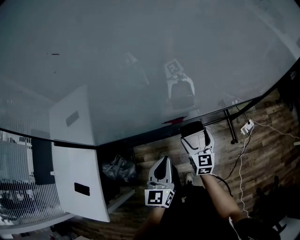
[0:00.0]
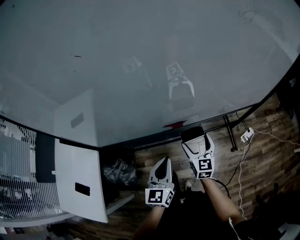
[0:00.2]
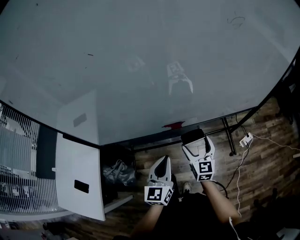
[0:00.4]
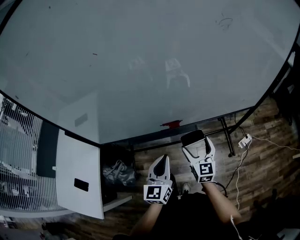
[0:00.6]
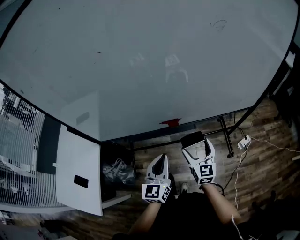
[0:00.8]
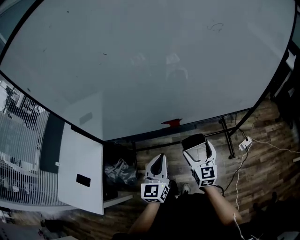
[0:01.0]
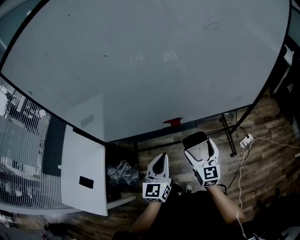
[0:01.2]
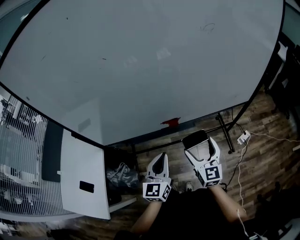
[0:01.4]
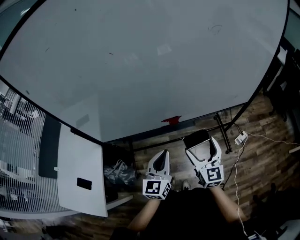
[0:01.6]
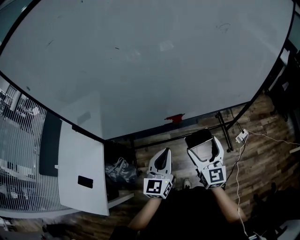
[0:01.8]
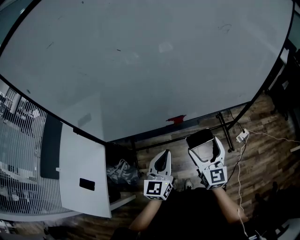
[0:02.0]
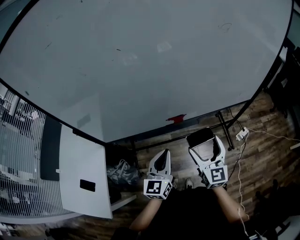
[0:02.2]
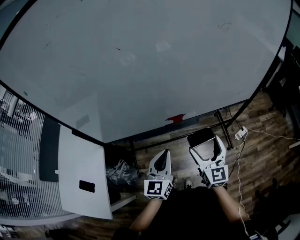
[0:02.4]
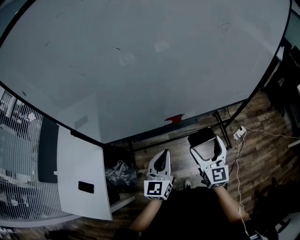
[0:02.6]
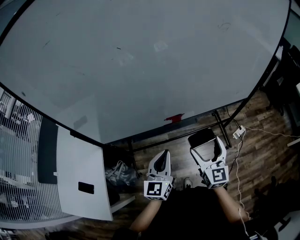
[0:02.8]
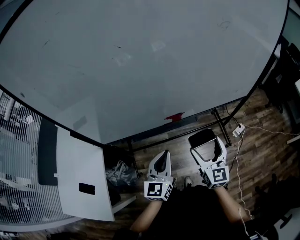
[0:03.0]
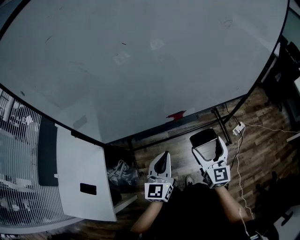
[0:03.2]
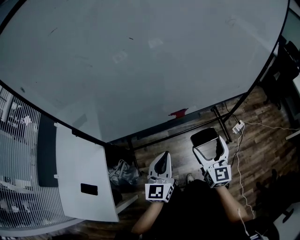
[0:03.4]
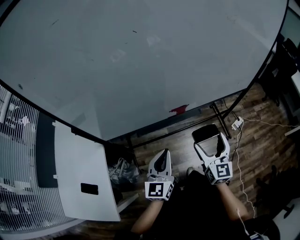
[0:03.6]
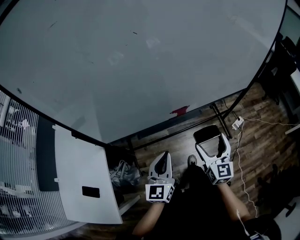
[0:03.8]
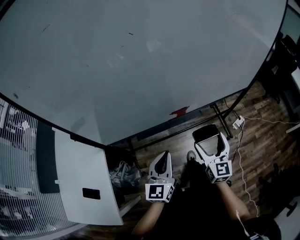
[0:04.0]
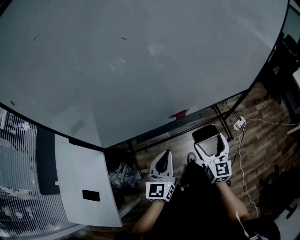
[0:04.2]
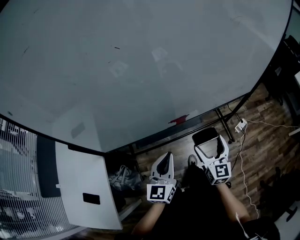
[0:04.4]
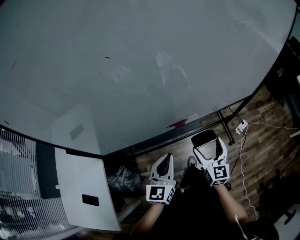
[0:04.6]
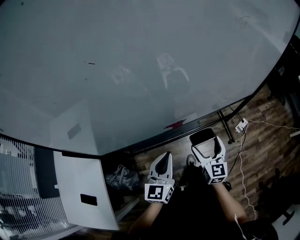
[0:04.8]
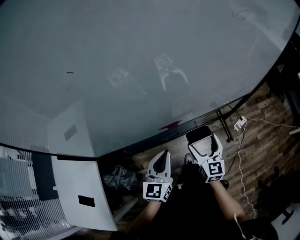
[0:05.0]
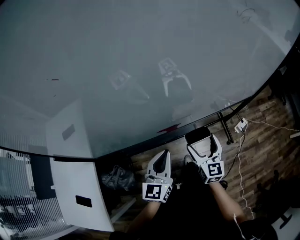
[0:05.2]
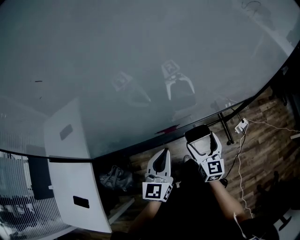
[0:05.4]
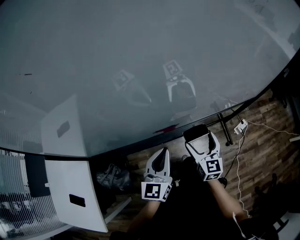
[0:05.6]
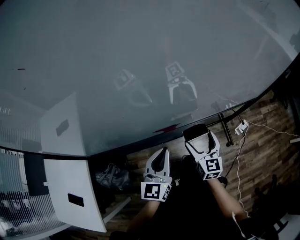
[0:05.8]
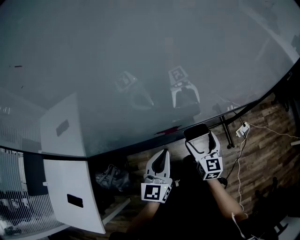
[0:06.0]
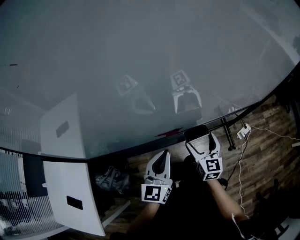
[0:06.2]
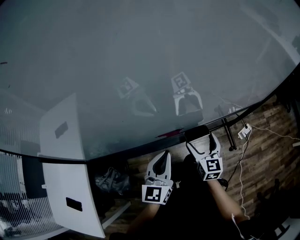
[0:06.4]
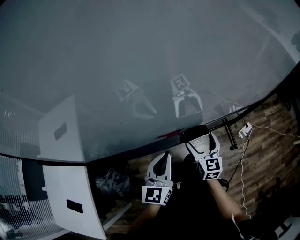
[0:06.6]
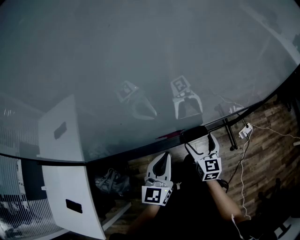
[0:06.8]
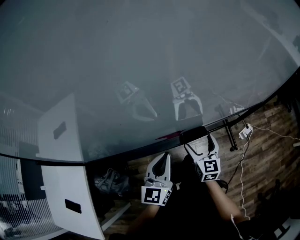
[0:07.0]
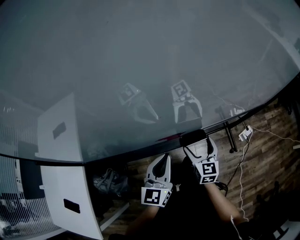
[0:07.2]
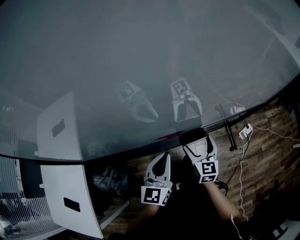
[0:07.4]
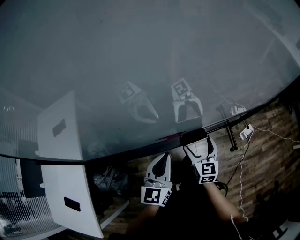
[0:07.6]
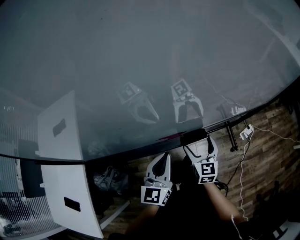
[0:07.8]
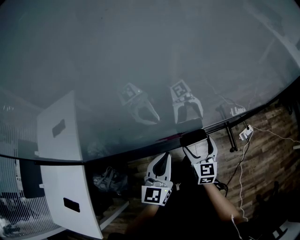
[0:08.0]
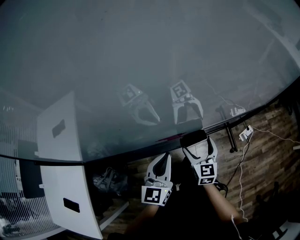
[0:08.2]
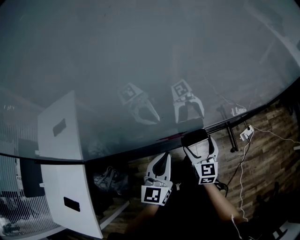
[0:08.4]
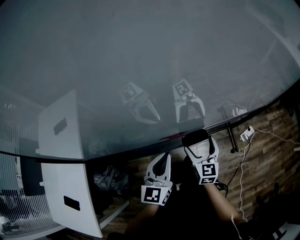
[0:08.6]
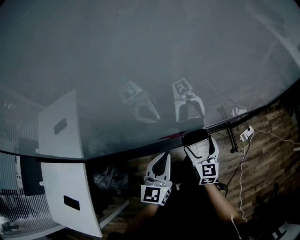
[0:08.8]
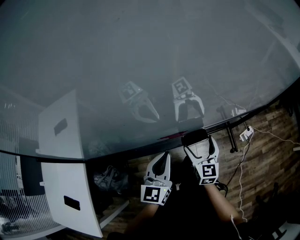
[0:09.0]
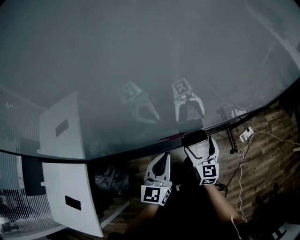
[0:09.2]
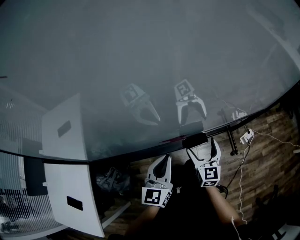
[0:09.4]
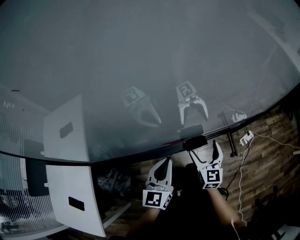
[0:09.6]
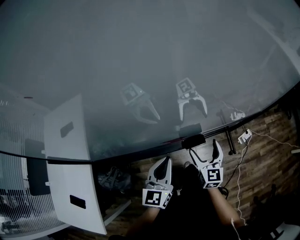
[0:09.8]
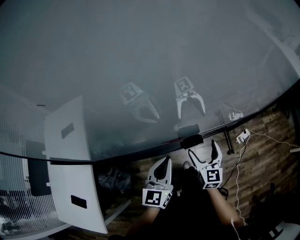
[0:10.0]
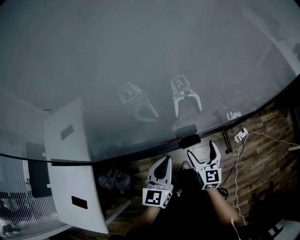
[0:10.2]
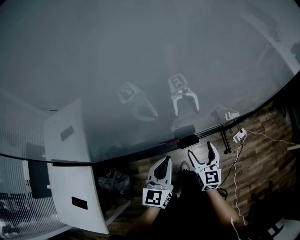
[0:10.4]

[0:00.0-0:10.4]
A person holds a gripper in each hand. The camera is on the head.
0.0 to 1.4 s: The right gripper heads upward and backward, covering about 20 cm, while the left gripper shifts roughly 10 cm upward and backward.
1.4 to 3.0 s: The grippers make only small movements.
3.0 to 4.4 s: The right gripper heads downward, covering about 5 cm.
4.4 to 6.0 s: The left gripper goes some 15 cm forward and downward. Meanwhile the right gripper shifts approximately 15 cm downward and forward.
6.0 to 7.4 s: The right gripper heads downward, covering about 5 cm.
7.4 to 9.0 s: Both grippers stay about where they are.
9.0 to 10.4 s: Both grippers move upward, approximately 10 cm.

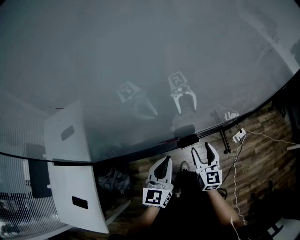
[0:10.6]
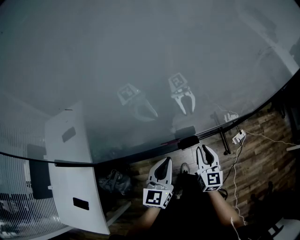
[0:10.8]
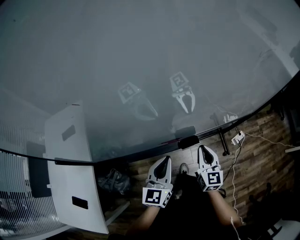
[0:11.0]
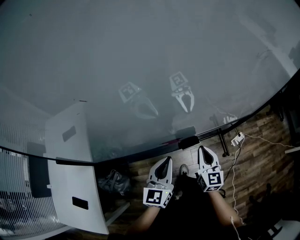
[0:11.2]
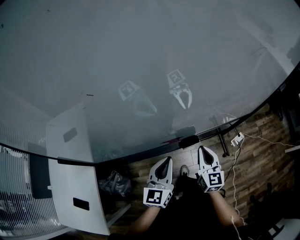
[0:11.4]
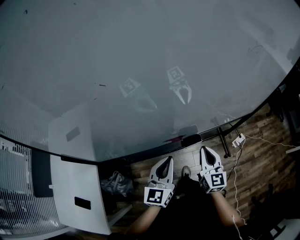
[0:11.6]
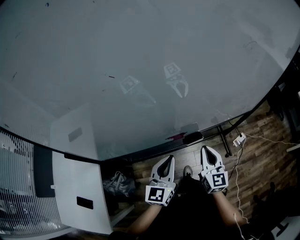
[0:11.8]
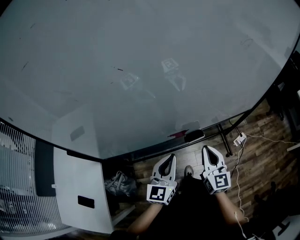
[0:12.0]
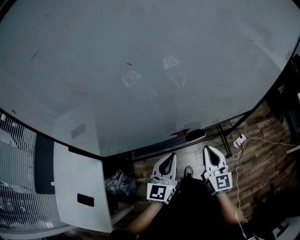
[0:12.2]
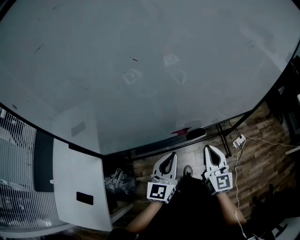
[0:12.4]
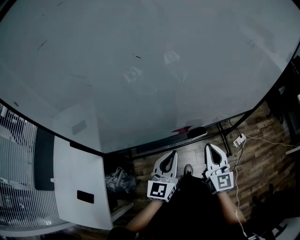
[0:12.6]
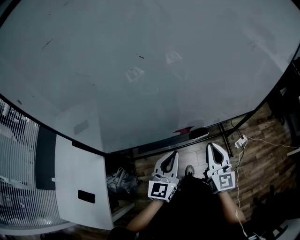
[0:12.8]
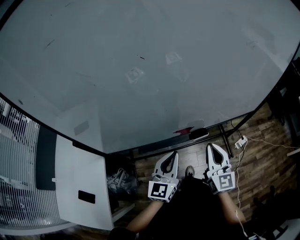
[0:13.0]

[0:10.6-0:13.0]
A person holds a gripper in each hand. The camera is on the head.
10.6 to 11.8 s: The right gripper travels upward by roughly 10 cm, and closes up, while the left gripper changes place by some 5 cm.
11.8 to 13.0 s: The right gripper moves upward, about 5 cm.

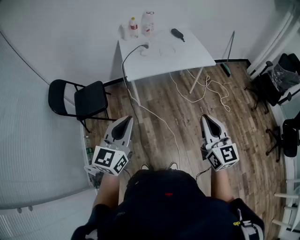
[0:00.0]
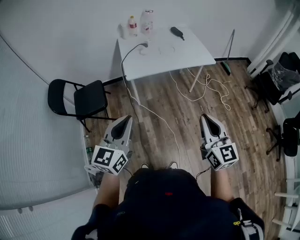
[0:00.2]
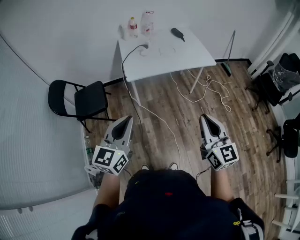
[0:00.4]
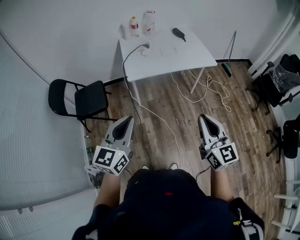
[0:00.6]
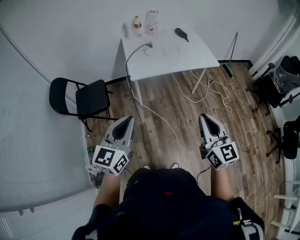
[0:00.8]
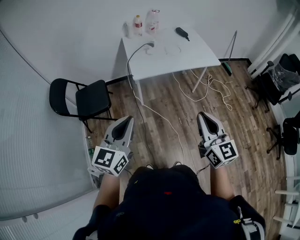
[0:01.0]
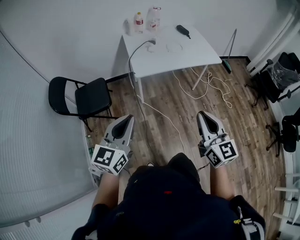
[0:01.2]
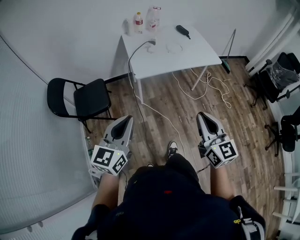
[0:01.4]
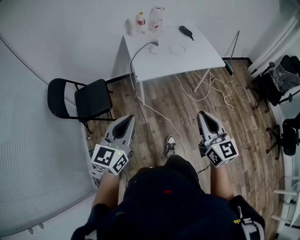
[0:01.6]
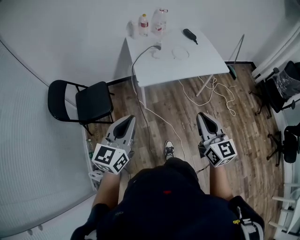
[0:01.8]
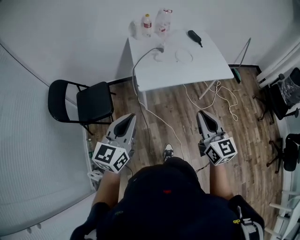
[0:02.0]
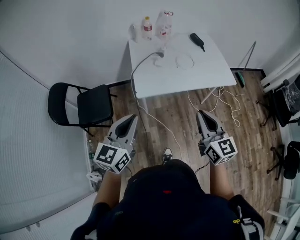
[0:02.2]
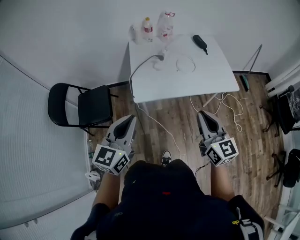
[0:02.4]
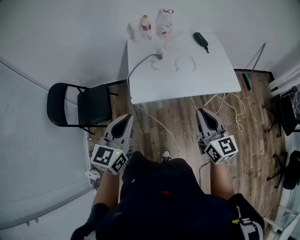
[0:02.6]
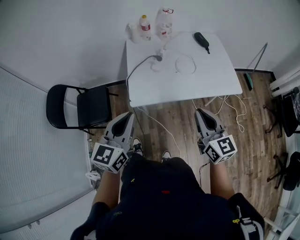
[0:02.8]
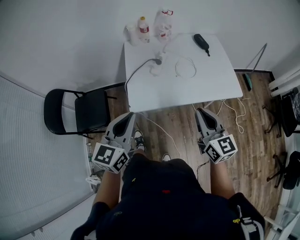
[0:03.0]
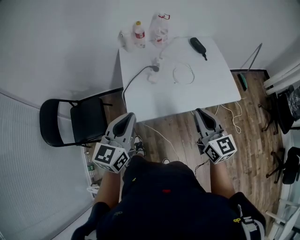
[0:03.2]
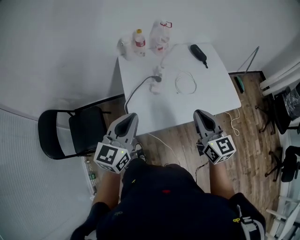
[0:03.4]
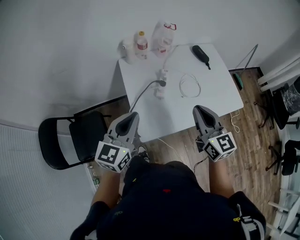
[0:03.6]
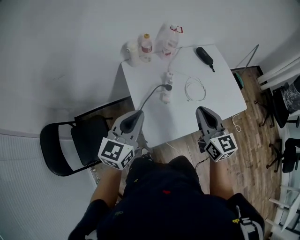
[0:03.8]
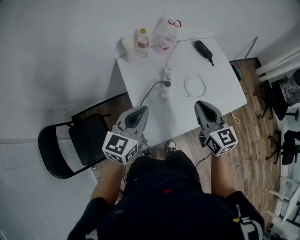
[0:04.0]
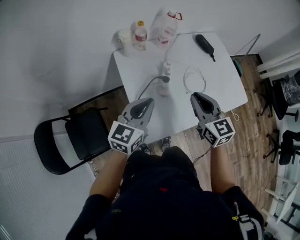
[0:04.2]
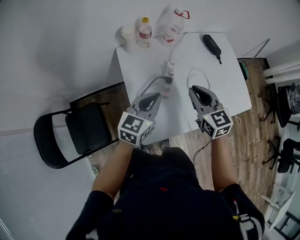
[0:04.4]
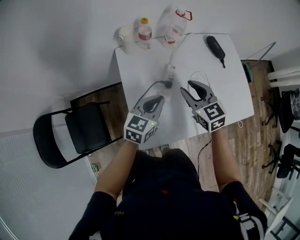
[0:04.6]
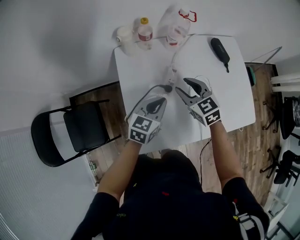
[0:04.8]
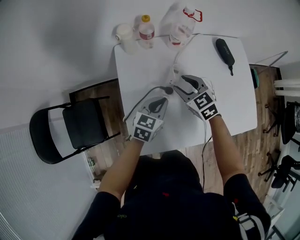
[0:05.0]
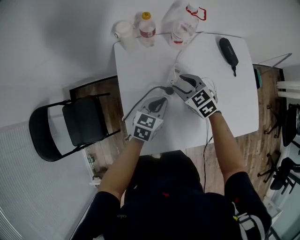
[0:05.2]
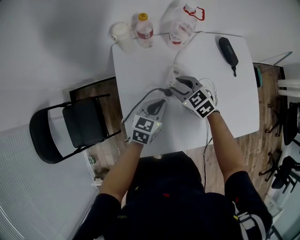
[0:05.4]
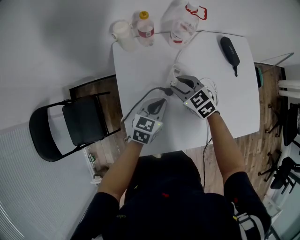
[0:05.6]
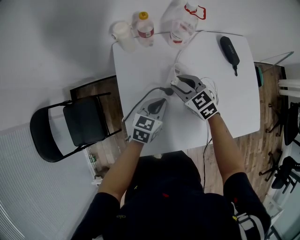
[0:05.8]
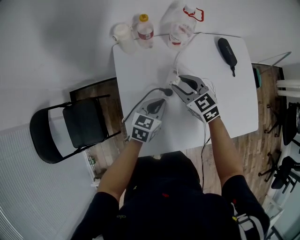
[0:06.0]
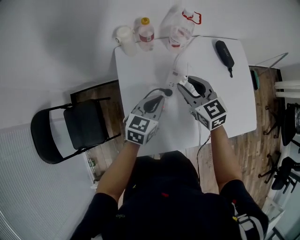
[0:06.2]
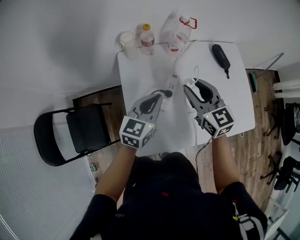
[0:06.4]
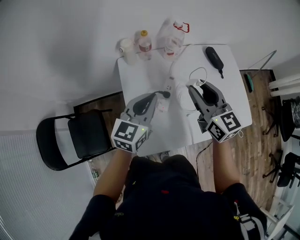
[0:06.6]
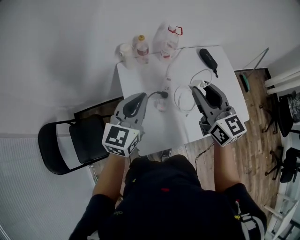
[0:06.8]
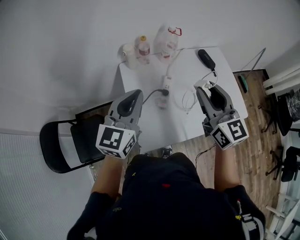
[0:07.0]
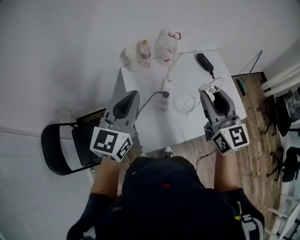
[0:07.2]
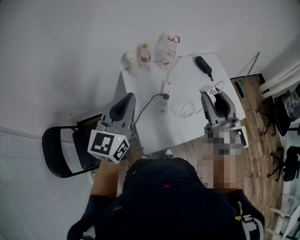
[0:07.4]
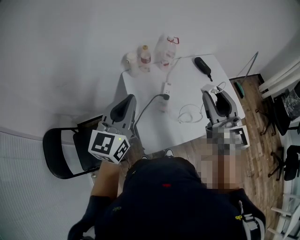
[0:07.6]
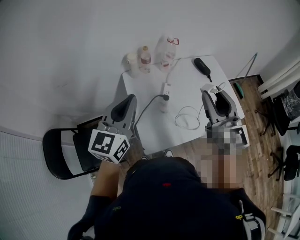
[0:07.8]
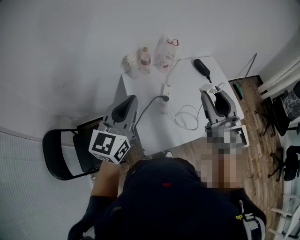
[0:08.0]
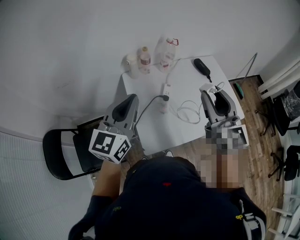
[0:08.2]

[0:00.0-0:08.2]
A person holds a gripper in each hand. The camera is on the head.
0.0 to 1.6 s: The grippers both shift to the left and forward by about 15 cm.
1.6 to 3.2 s: The grippers both shift forward by about 40 cm.
3.2 to 5.0 s: The left gripper goes about 40 cm forward and downward, and rotates approximately 30 degrees. Meanwhile the right gripper goes approximately 50 cm forward, downward and to the left, tips its fingers downward by approximately 30 degrees, and opens its fingers.
5.0 to 6.6 s: The two grippers go some 20 cm upward. The right gripper rotates approximately 40 degrees.
6.6 to 8.2 s: The right gripper shifts some 20 cm upward and backward, and swivels approximately 20 degrees, while the left gripper goes approximately 20 cm upward, backward and to the left.

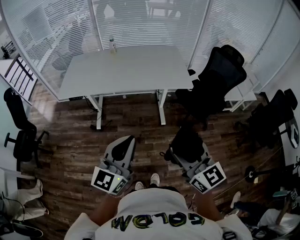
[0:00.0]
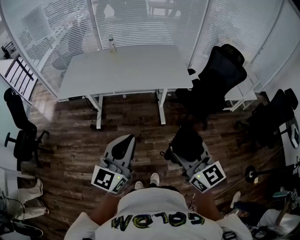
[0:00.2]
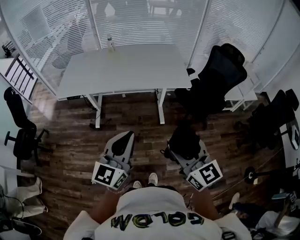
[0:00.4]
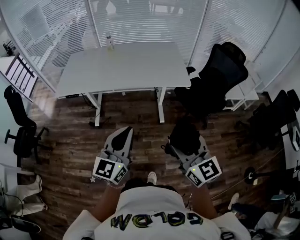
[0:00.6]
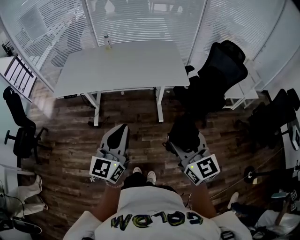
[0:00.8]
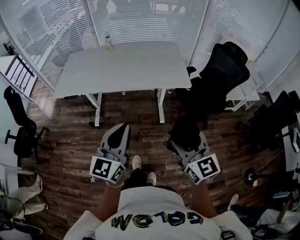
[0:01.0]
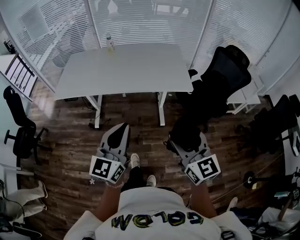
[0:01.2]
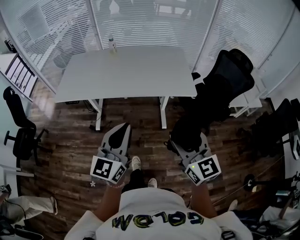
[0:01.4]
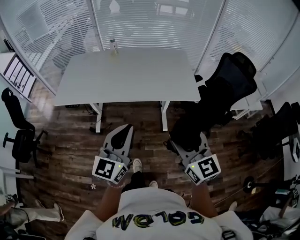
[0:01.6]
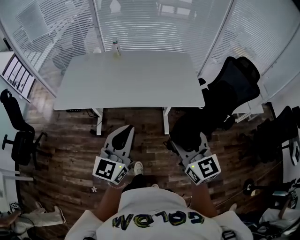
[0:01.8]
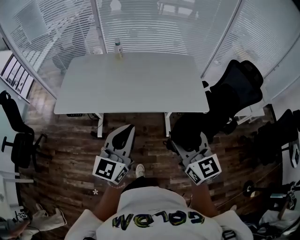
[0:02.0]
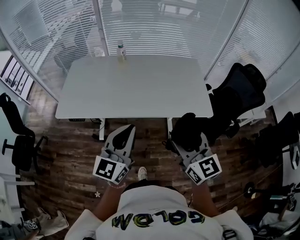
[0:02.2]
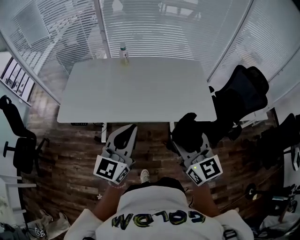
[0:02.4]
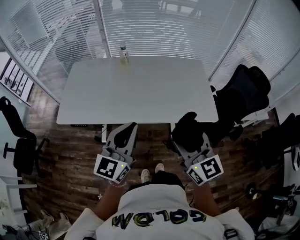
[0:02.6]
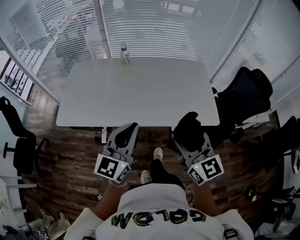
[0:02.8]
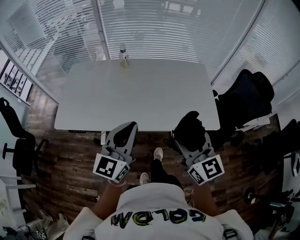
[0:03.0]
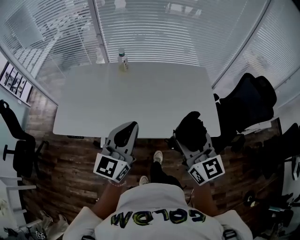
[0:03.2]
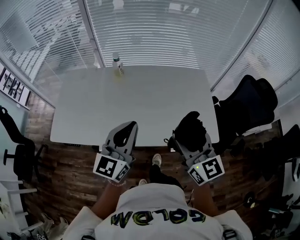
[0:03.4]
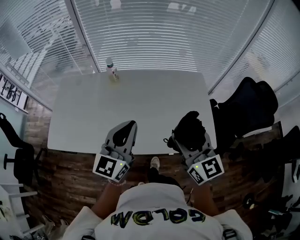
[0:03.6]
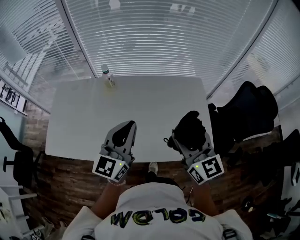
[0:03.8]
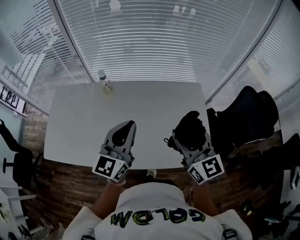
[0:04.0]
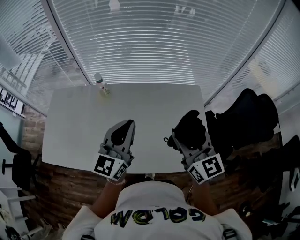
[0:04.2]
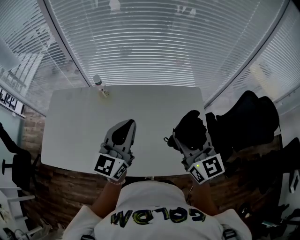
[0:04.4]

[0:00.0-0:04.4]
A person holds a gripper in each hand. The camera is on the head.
0.0 to 1.4 s: Both grippers travel together forward, some 15 cm.
1.4 to 3.0 s: The left gripper is displaced forward by approximately 30 cm. The right gripper is displaced forward and to the left by roughly 30 cm.
3.0 to 4.4 s: The right gripper shifts about 30 cm forward and to the right; the left gripper travels forward by some 30 cm.
